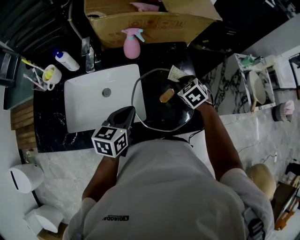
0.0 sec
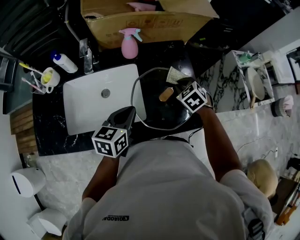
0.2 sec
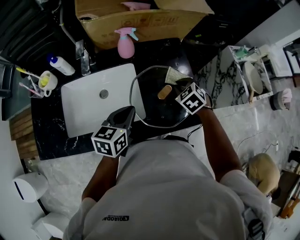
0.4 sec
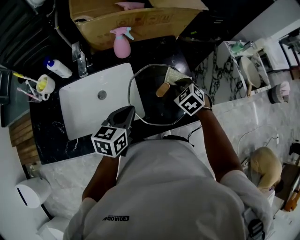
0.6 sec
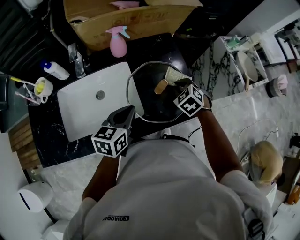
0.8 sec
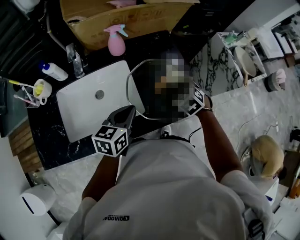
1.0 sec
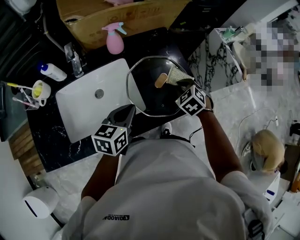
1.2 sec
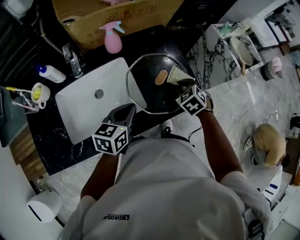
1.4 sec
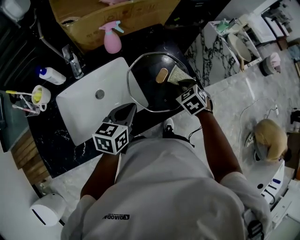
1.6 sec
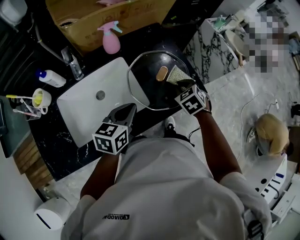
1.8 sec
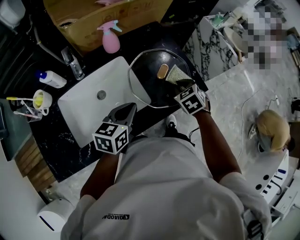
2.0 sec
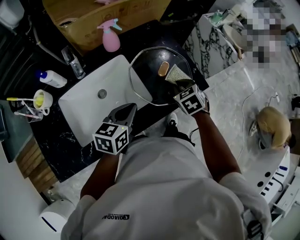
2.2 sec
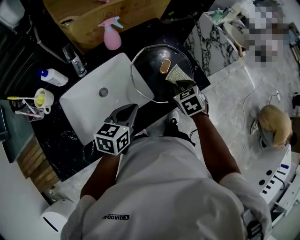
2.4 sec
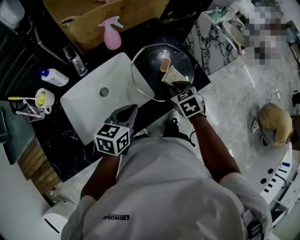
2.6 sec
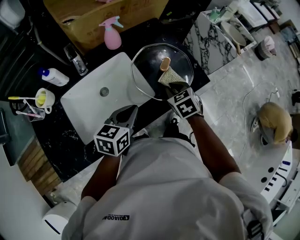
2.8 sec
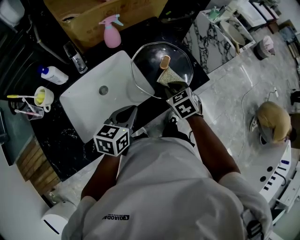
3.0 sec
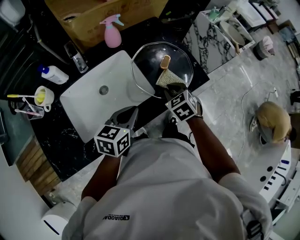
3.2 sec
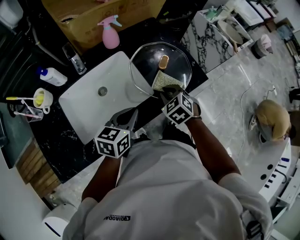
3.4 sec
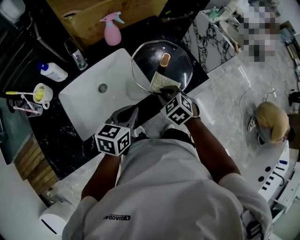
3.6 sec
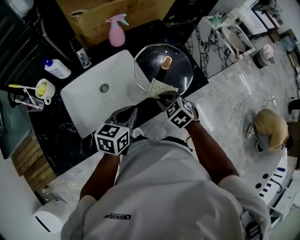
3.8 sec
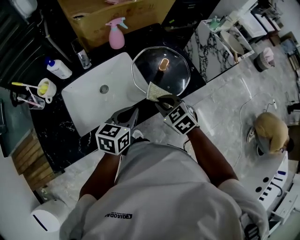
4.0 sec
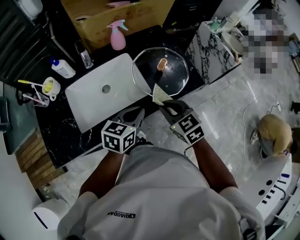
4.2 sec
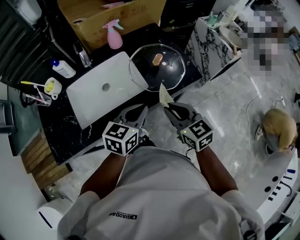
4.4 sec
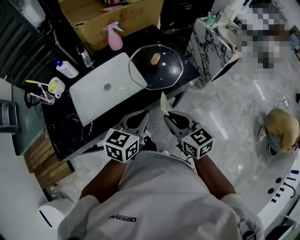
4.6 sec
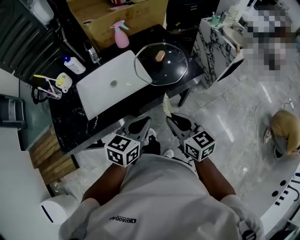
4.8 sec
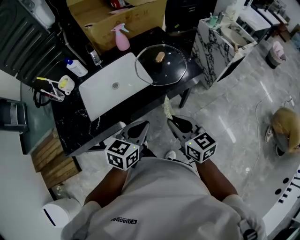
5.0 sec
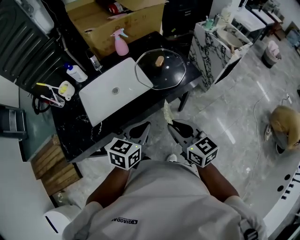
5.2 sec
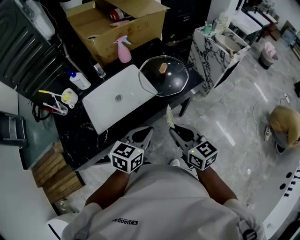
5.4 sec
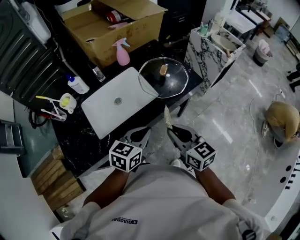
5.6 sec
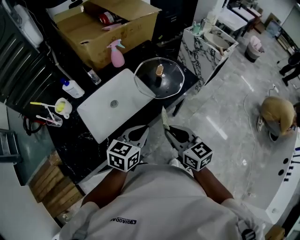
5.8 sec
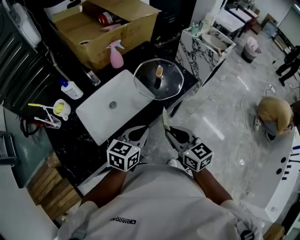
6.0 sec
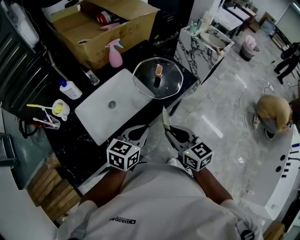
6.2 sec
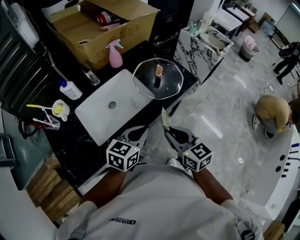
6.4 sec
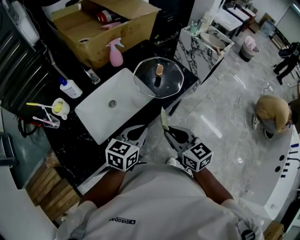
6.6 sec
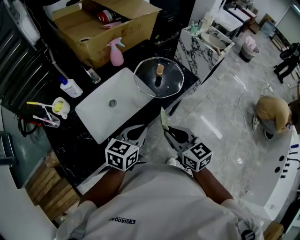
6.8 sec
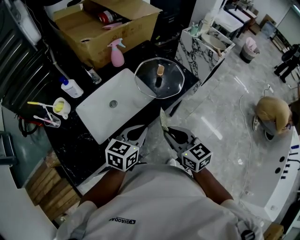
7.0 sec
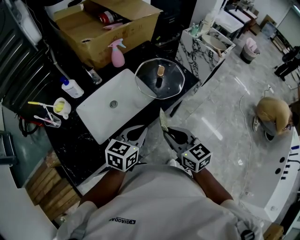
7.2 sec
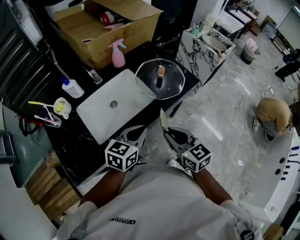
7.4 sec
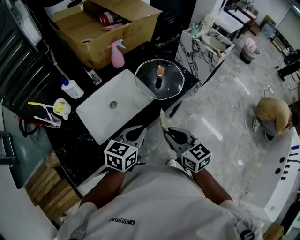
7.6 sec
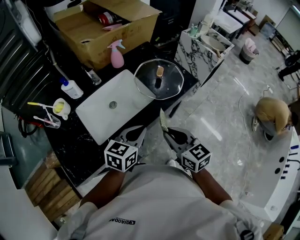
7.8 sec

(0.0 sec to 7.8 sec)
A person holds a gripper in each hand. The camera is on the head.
0.0 sec - 1.6 sec: The left gripper changes its angle by some 20 degrees, while the right gripper moves backward, roughly 10 cm.
1.6 sec - 3.2 sec: The right gripper moves backward and to the left, about 10 cm. The left gripper travels backward by approximately 5 cm.
3.2 sec - 4.6 sec: The left gripper travels backward, to the right and upward by about 15 cm, while the right gripper shifts roughly 25 cm backward and upward, and angles its fingers upward, by about 30 degrees.
4.6 sec - 6.2 sec: Both grippers travel together to the left, some 10 cm.
6.2 sec - 7.8 sec: There are only small adjustments of the grippers.

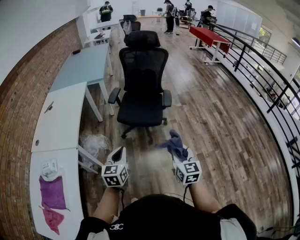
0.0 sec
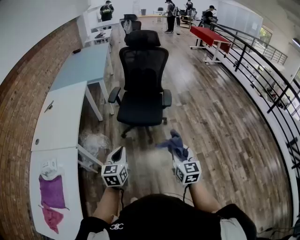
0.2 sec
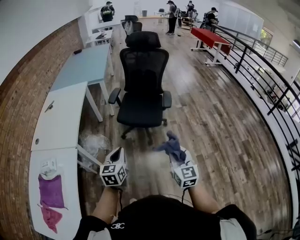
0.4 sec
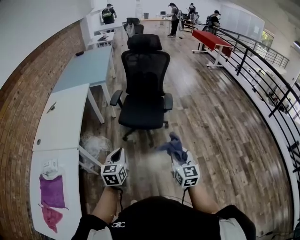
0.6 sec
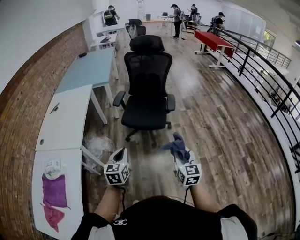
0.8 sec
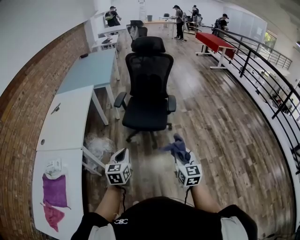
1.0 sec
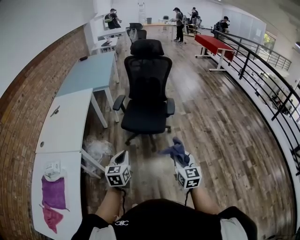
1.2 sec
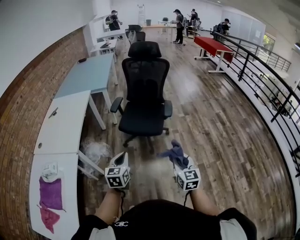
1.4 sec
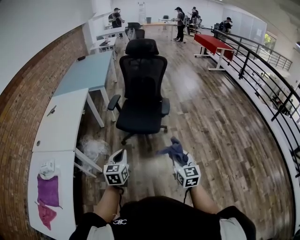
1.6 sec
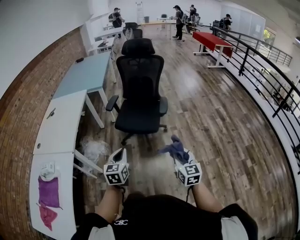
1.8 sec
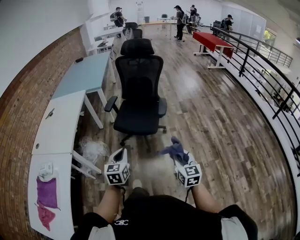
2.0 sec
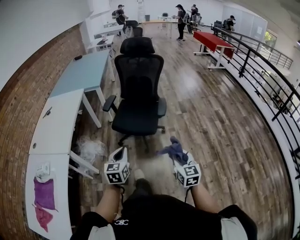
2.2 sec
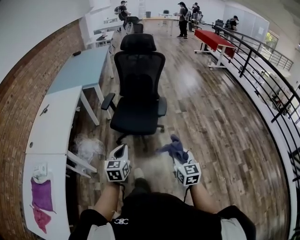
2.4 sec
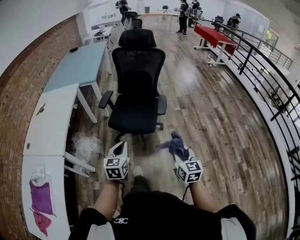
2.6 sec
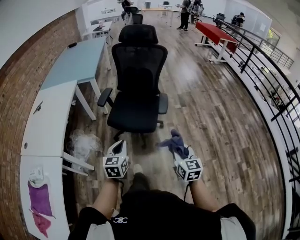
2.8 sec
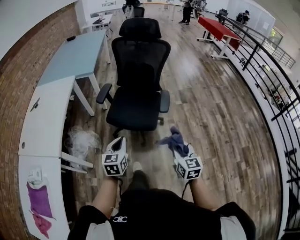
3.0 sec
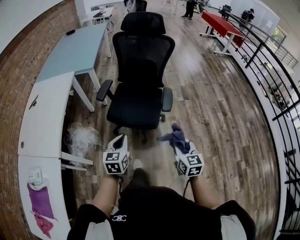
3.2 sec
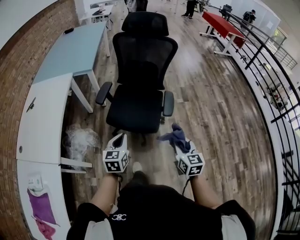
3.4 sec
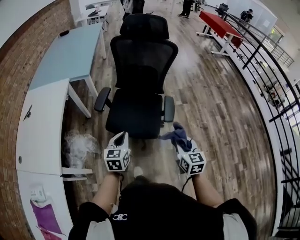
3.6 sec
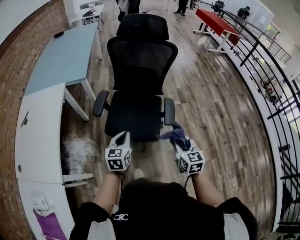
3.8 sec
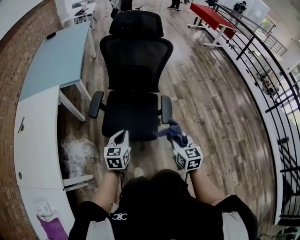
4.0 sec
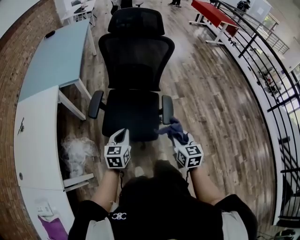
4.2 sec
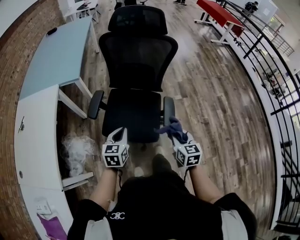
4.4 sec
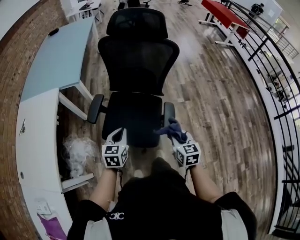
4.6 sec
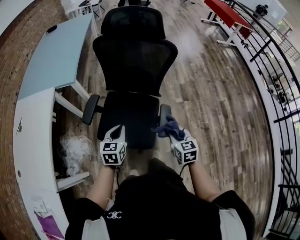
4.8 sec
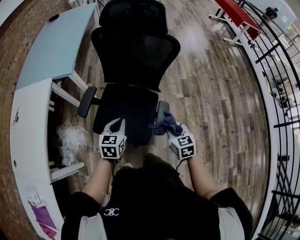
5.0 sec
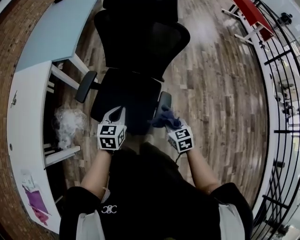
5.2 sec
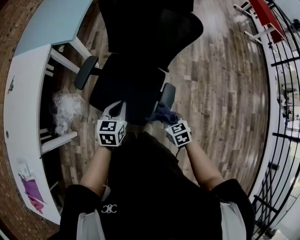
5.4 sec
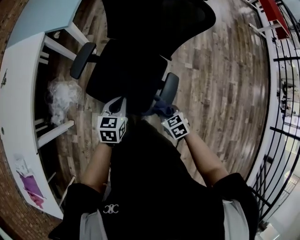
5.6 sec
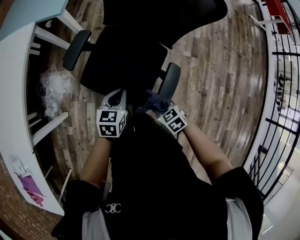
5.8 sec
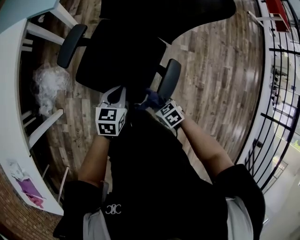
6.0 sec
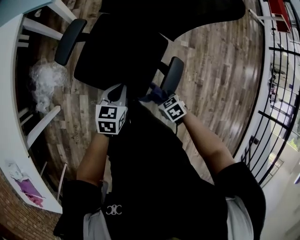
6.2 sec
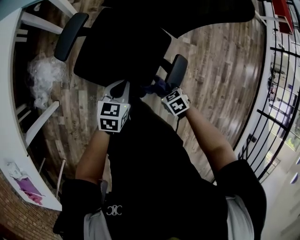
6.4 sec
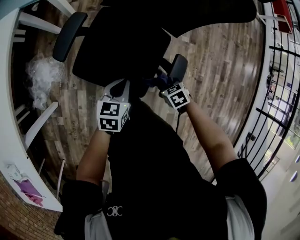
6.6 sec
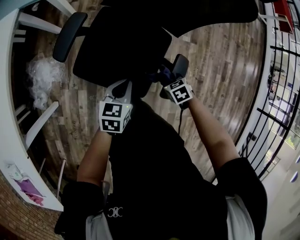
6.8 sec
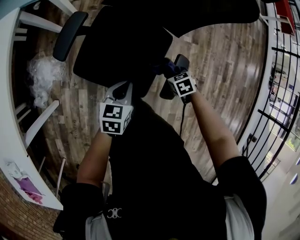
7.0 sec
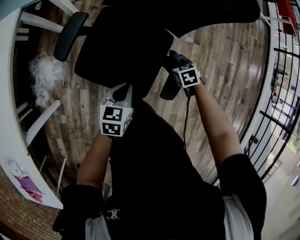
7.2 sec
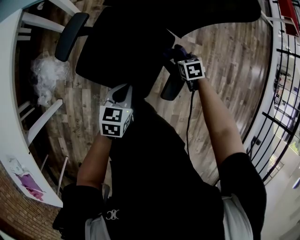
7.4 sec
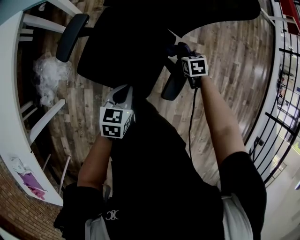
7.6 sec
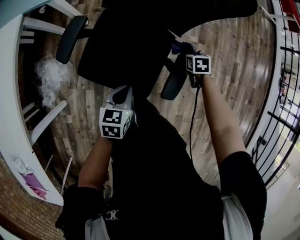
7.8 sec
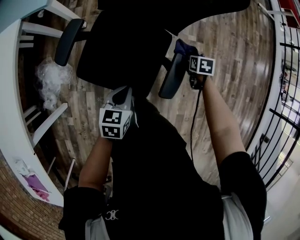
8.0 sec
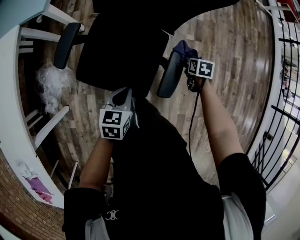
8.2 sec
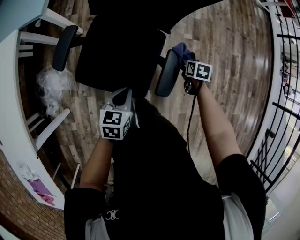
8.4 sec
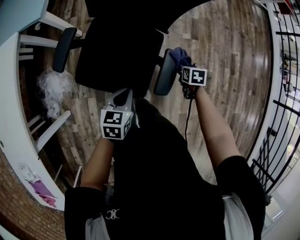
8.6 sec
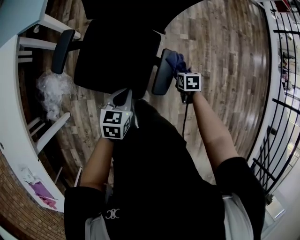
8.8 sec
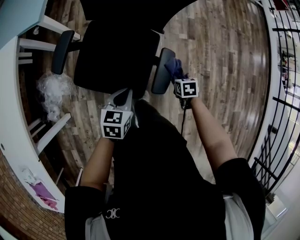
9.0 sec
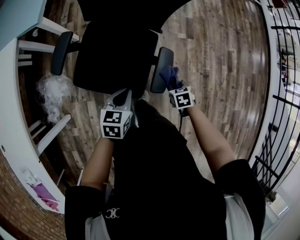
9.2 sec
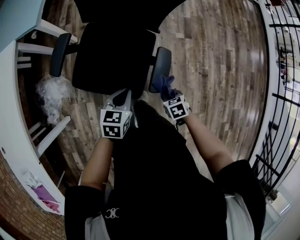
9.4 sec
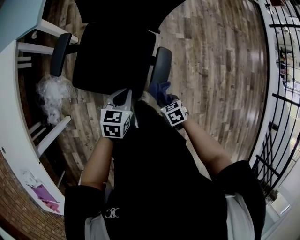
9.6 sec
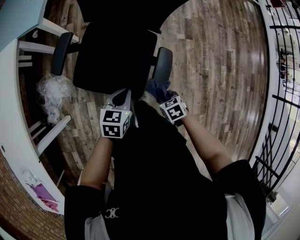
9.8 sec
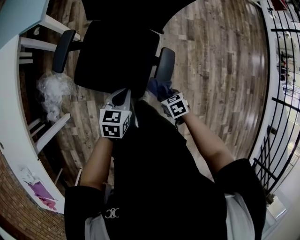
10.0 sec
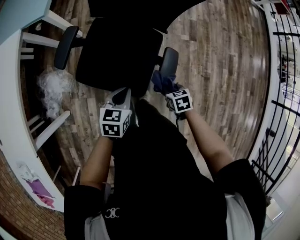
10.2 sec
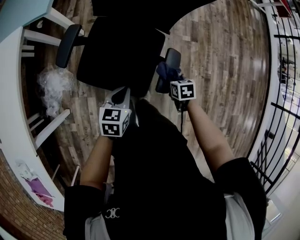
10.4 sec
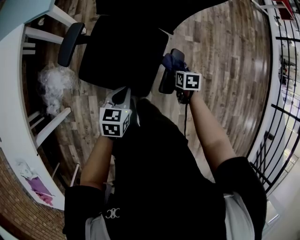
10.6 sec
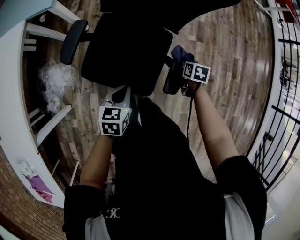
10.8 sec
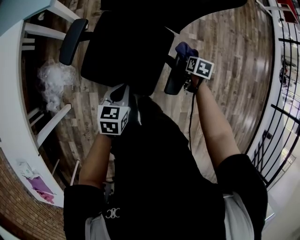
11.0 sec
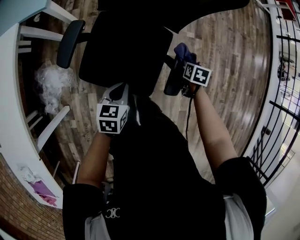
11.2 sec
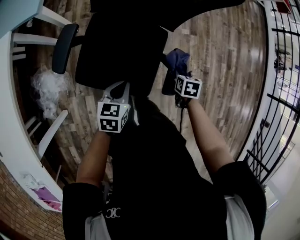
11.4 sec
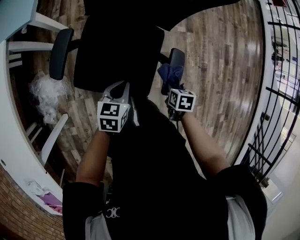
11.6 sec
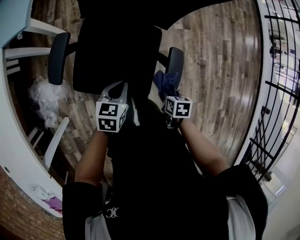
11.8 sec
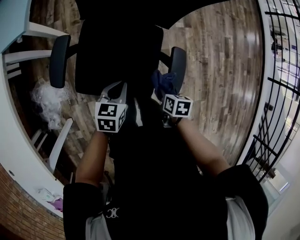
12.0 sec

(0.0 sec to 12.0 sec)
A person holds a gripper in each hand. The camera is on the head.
0.0 sec - 1.6 sec: Both grippers travel together to the right, approximately 5 cm.
1.6 sec - 3.0 sec: Both grippers move forward, roughly 20 cm.
3.0 sec - 4.4 sec: The grippers both shift forward by some 30 cm.
4.4 sec - 6.0 sec: The left gripper is displaced downward by roughly 15 cm; the right gripper goes approximately 25 cm downward, and angles its fingers downward, by approximately 40 degrees.
6.0 sec - 7.6 sec: The right gripper ends up some 25 cm from where it was, and rotates some 30 degrees.
7.6 sec - 9.0 sec: The left gripper heads to the right, covering approximately 5 cm. The right gripper shifts approximately 15 cm backward and to the right.
9.0 sec - 10.4 sec: The right gripper heads to the left, covering approximately 5 cm, and travels backward and back again, approximately 10 cm each way.
10.4 sec - 12.0 sec: The right gripper is displaced to the left by approximately 10 cm, goes forward and returns, about 10 cm each way, and swivels about 30 degrees; the left gripper heads to the left, forward and downward, covering about 10 cm.

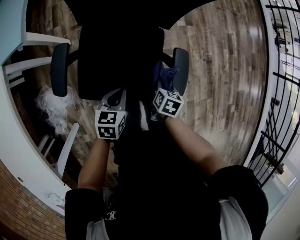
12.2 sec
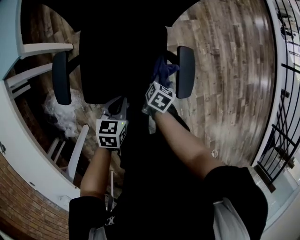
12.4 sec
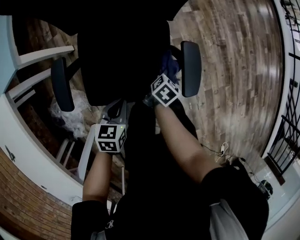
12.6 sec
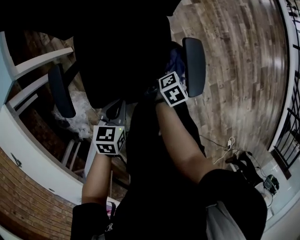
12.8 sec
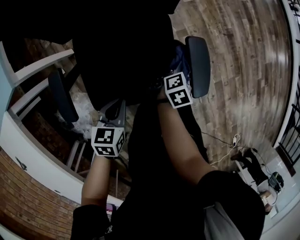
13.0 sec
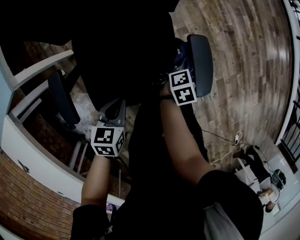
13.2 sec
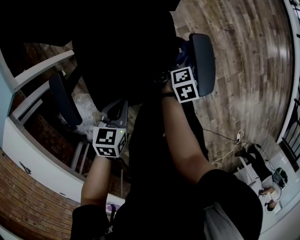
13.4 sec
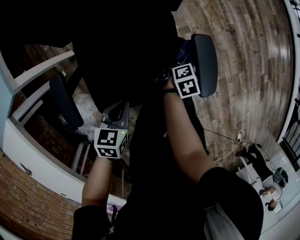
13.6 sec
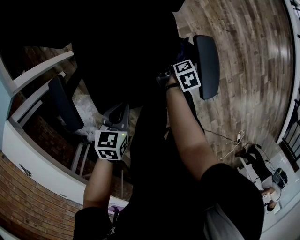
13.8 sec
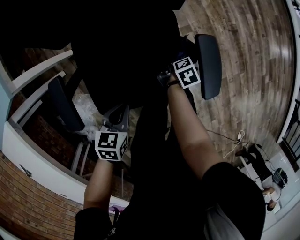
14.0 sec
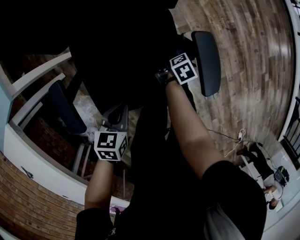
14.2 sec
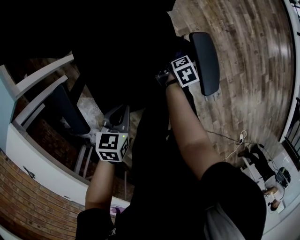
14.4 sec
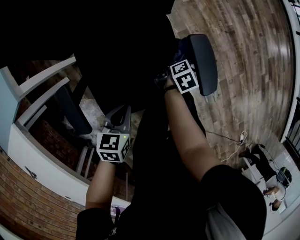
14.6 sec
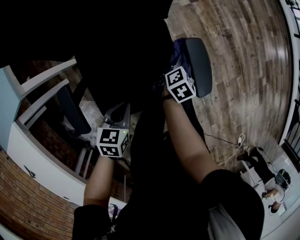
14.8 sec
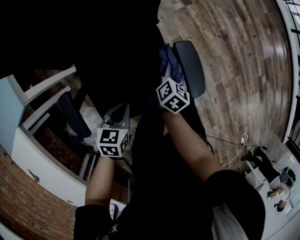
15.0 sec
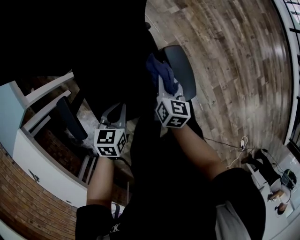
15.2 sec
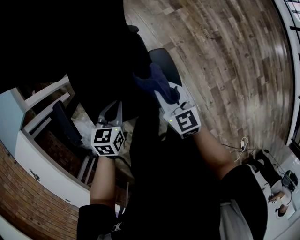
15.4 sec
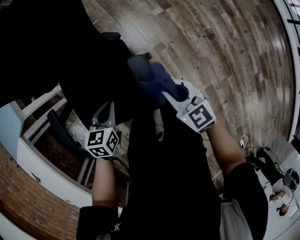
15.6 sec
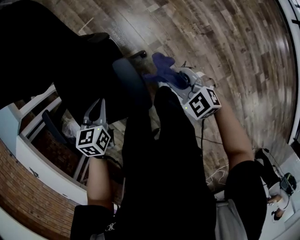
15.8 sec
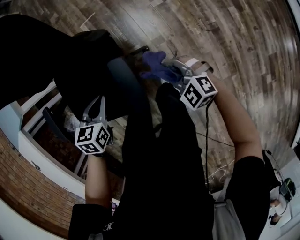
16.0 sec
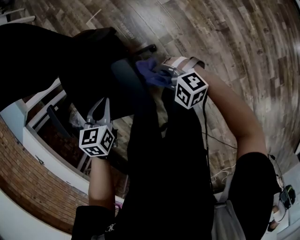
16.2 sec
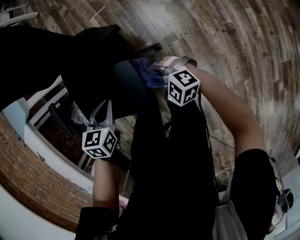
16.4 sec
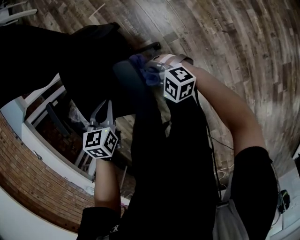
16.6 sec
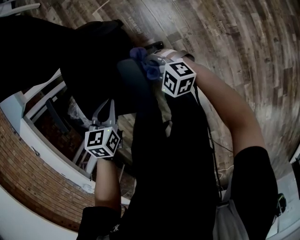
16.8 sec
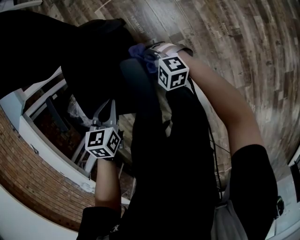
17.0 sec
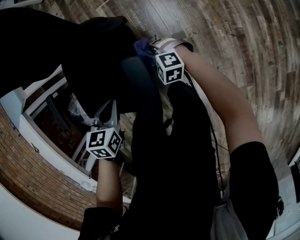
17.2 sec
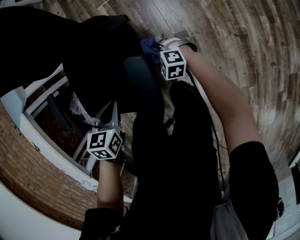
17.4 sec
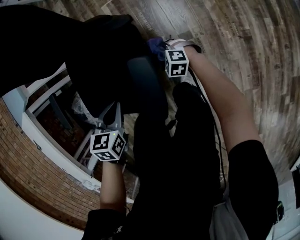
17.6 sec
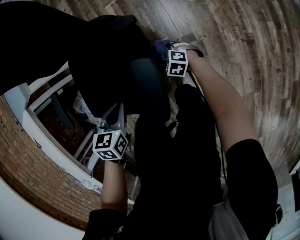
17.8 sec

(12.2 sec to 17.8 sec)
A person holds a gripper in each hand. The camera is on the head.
12.2 sec - 13.6 sec: The left gripper travels downward by some 5 cm; the right gripper heads downward, covering about 10 cm, and rotates around the line of its fingers by some 50 degrees, clockwise from behind.
13.6 sec - 15.0 sec: The left gripper changes place by about 5 cm. The right gripper shifts approximately 10 cm upward and to the left, and rotates about 20 degrees.
15.0 sec - 16.4 sec: The right gripper travels upward and back again, roughly 15 cm each way, and swivels some 130 degrees. Meanwhile the left gripper moves some 20 cm.
16.4 sec - 17.8 sec: The right gripper shifts some 20 cm downward, and rotates approximately 30 degrees. Meanwhile the left gripper ends up approximately 5 cm from where it was.
